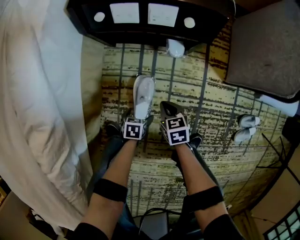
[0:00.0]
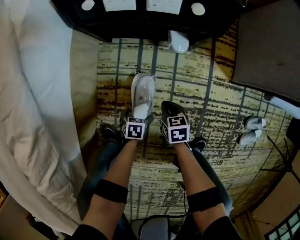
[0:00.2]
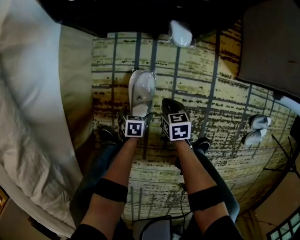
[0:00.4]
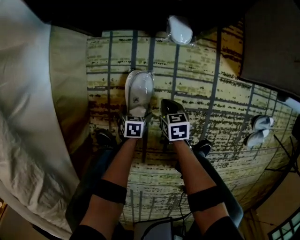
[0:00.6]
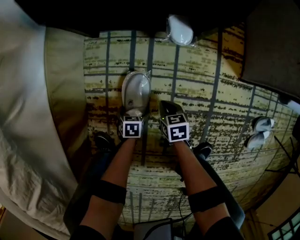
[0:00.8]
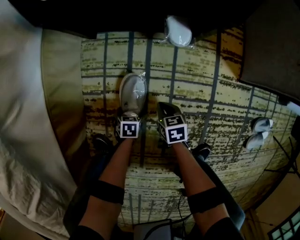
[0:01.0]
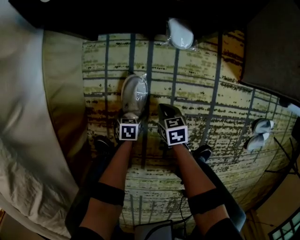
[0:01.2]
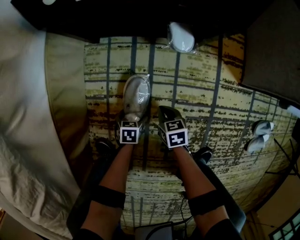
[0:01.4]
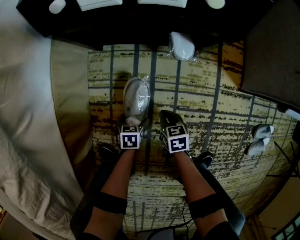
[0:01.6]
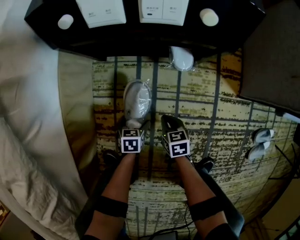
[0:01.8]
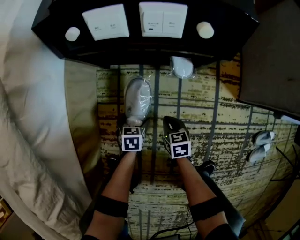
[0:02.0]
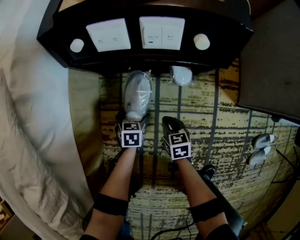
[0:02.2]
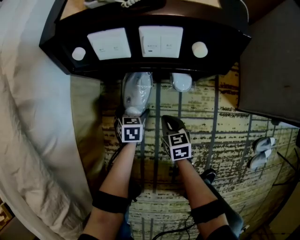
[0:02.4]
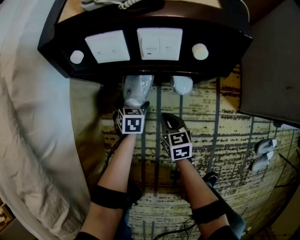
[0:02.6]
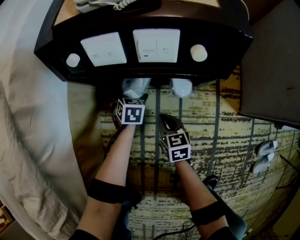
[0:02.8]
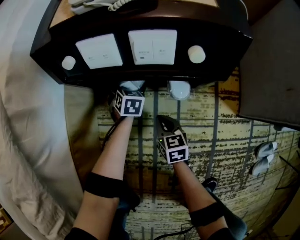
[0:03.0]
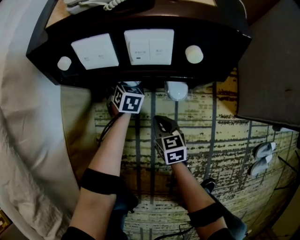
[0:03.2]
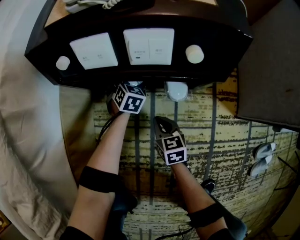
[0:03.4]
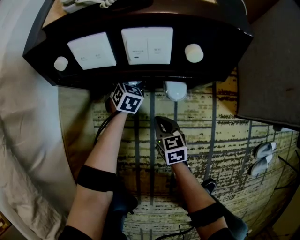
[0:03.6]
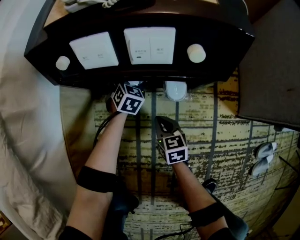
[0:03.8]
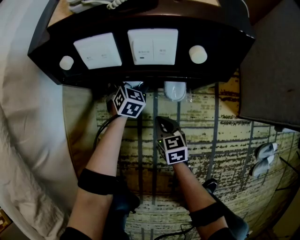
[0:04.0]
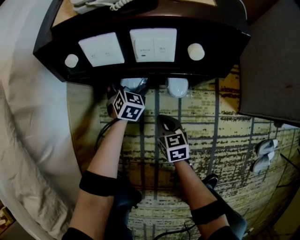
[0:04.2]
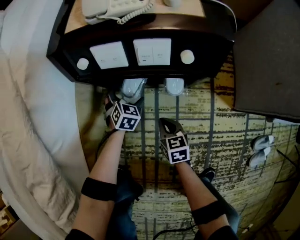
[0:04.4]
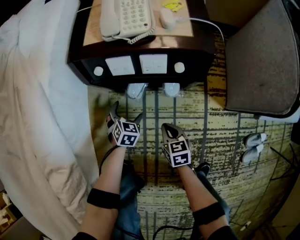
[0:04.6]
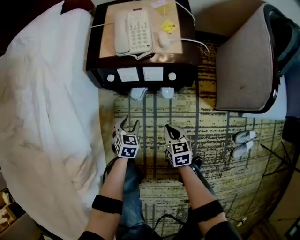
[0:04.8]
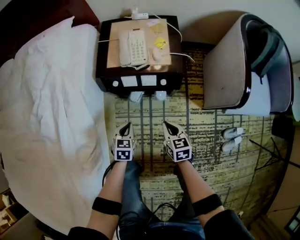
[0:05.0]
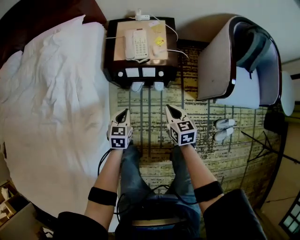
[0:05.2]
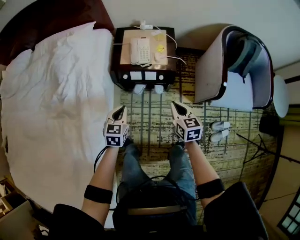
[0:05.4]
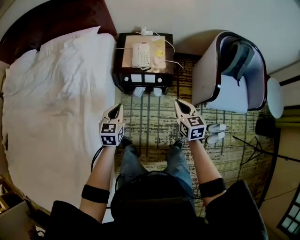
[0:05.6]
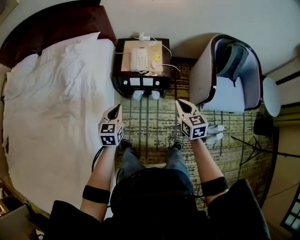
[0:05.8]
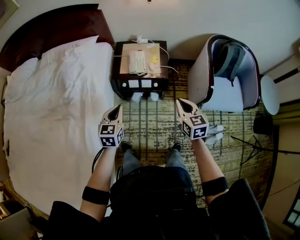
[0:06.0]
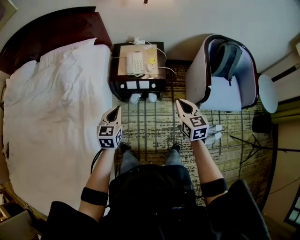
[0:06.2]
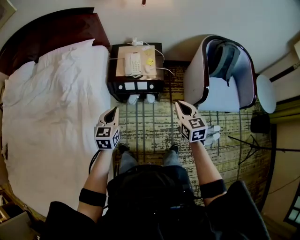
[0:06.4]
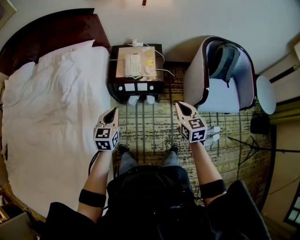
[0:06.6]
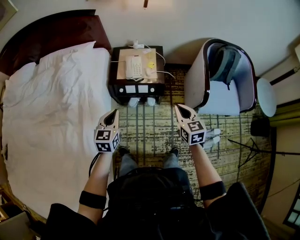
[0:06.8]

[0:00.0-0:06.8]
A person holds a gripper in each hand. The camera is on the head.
0:00.0 to 0:01.4: The grippers both shift downward by approximately 20 cm.
0:01.4 to 0:02.8: The left gripper goes about 30 cm forward, and turns by some 30 degrees, while the right gripper goes approximately 20 cm forward and upward.
0:02.8 to 0:04.0: The left gripper shifts about 5 cm forward, and rotates some 30 degrees.
0:04.0 to 0:05.4: The right gripper travels upward by roughly 70 cm; the left gripper shifts roughly 70 cm upward and backward, swivels approximately 30 degrees, and closes its fingers.
0:05.4 to 0:06.8: The right gripper goes roughly 15 cm upward and to the right. The left gripper heads upward, covering approximately 15 cm.

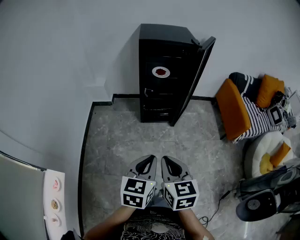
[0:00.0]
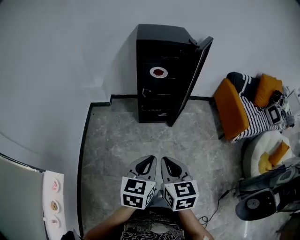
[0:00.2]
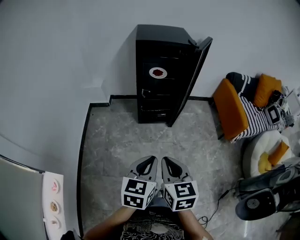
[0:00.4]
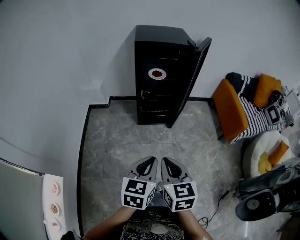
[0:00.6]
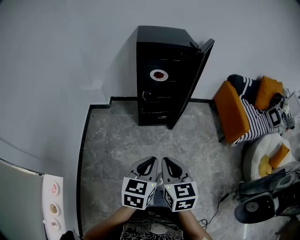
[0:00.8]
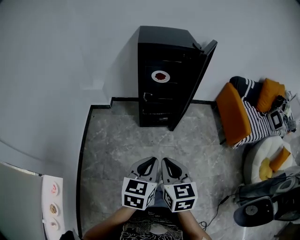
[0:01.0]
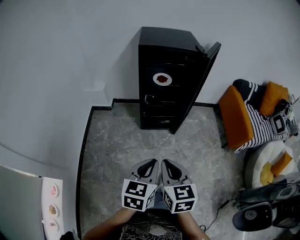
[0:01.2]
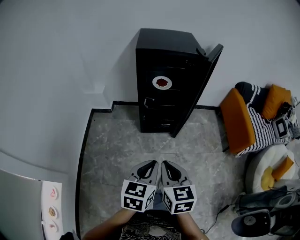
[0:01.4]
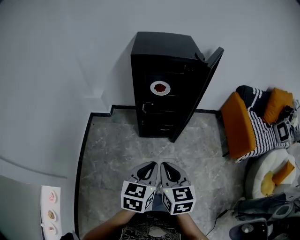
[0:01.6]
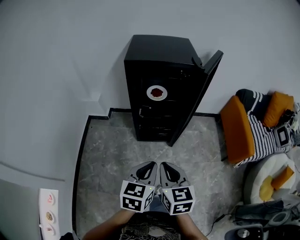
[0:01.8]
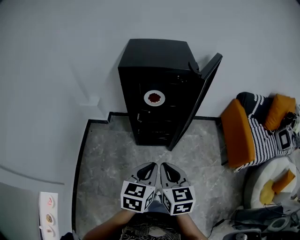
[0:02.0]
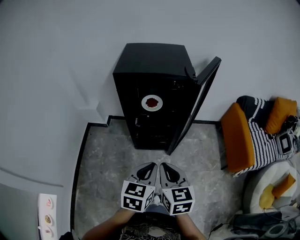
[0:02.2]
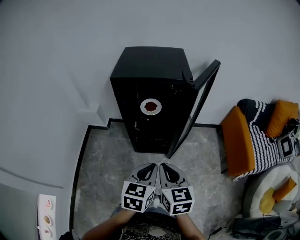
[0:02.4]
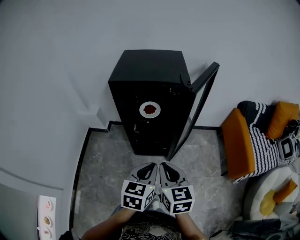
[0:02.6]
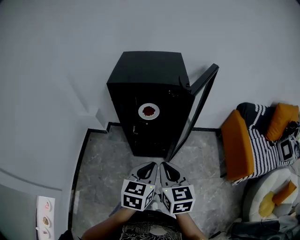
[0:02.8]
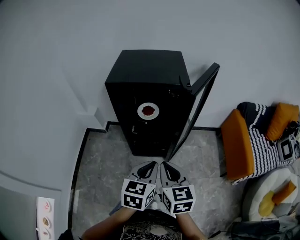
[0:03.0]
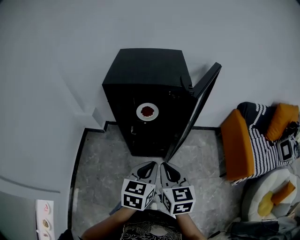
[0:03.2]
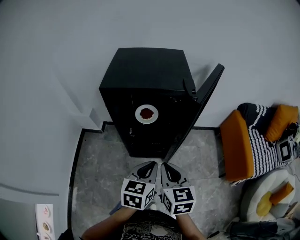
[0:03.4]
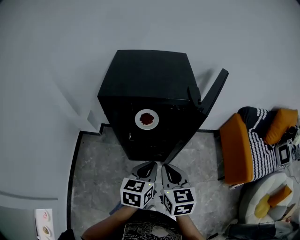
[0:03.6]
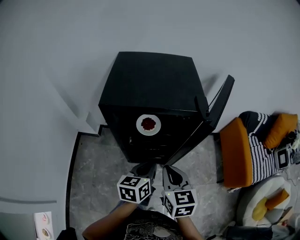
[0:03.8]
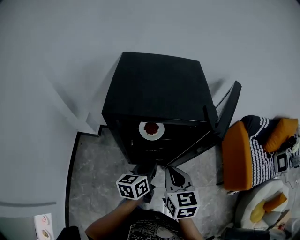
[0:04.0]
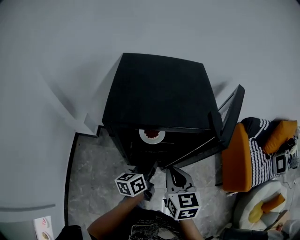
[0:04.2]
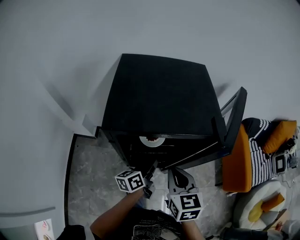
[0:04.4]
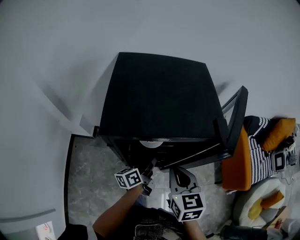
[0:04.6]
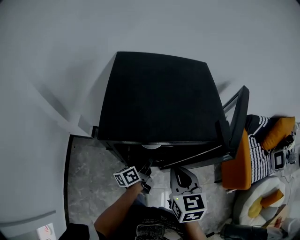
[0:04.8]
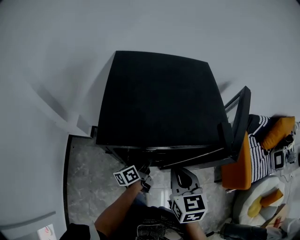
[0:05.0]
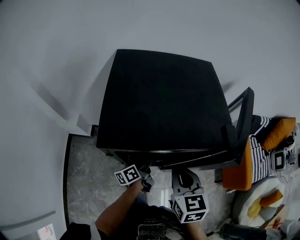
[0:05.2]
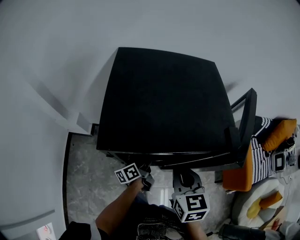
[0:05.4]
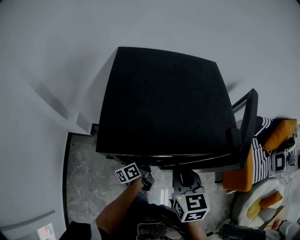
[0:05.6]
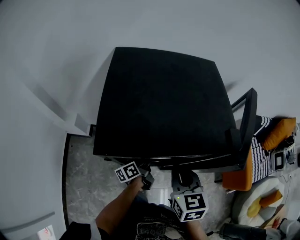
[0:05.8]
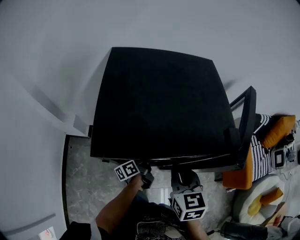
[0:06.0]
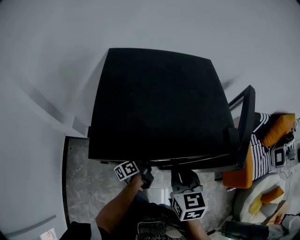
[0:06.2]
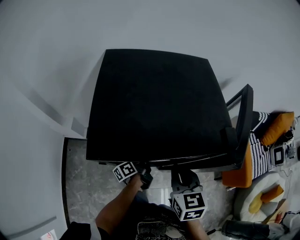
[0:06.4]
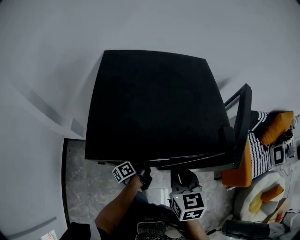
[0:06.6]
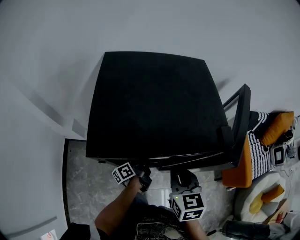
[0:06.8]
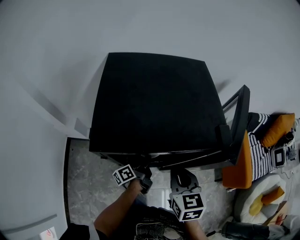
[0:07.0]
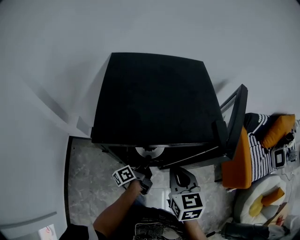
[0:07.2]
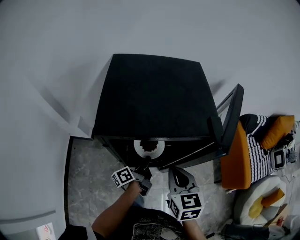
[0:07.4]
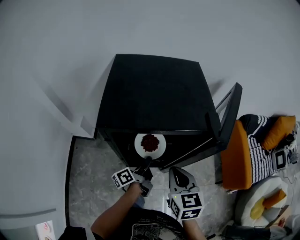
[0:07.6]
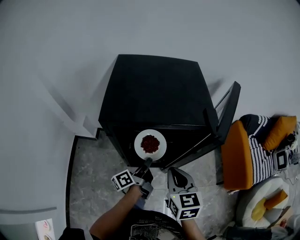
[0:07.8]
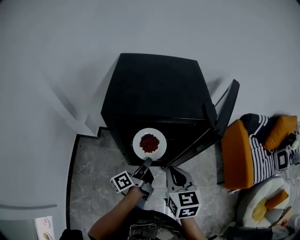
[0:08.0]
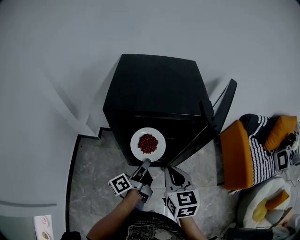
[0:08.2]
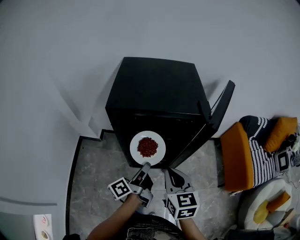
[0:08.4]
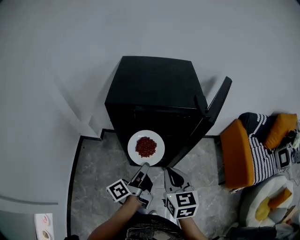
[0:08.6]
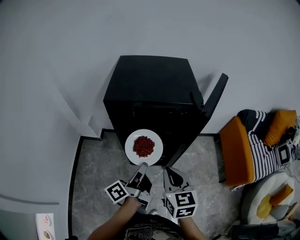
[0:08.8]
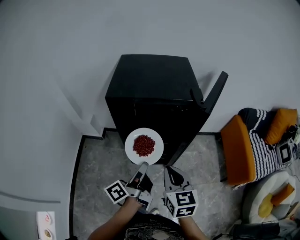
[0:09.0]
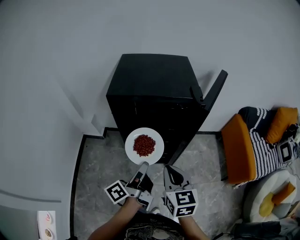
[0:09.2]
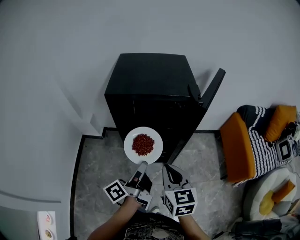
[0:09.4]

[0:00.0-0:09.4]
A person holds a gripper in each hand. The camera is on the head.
0:00.0 to 0:01.6: Both grippers travel together forward, approximately 15 cm.
0:01.6 to 0:03.2: Both grippers travel together forward and to the right, approximately 25 cm.
0:03.2 to 0:04.8: The right gripper is displaced forward by approximately 25 cm; the left gripper moves forward, downward and to the left, approximately 35 cm, and rotates around the line of its fingers by roughly 50 degrees, counterclockwise from behind.
0:04.8 to 0:06.2: The left gripper heads downward and forward, covering roughly 10 cm; the right gripper shifts by approximately 5 cm.
0:06.2 to 0:07.8: The left gripper goes roughly 20 cm upward and backward. The right gripper moves backward, about 10 cm.
0:07.8 to 0:09.4: The left gripper goes approximately 20 cm backward and upward; the right gripper goes some 15 cm backward.

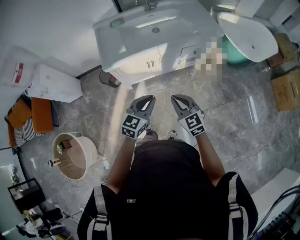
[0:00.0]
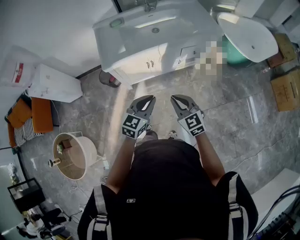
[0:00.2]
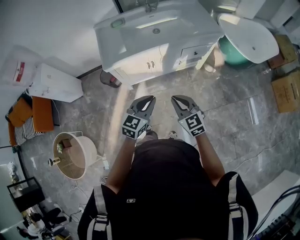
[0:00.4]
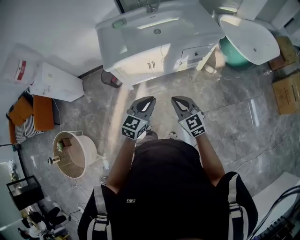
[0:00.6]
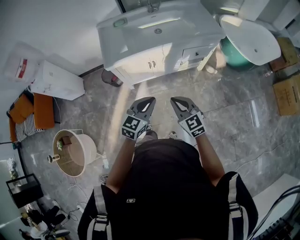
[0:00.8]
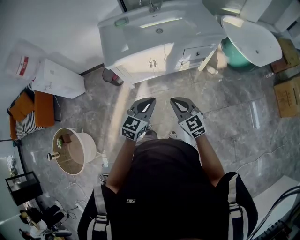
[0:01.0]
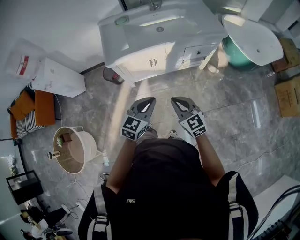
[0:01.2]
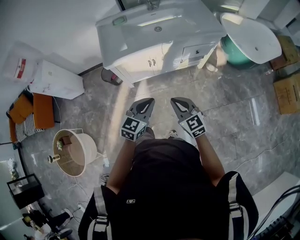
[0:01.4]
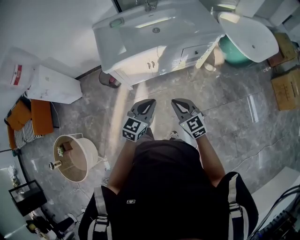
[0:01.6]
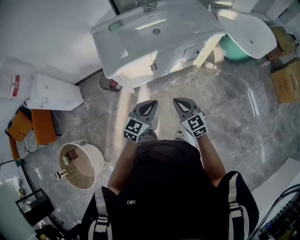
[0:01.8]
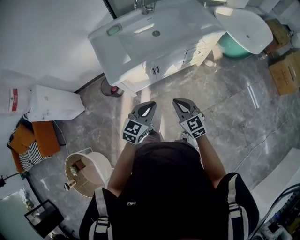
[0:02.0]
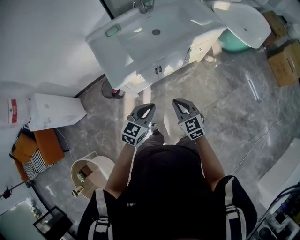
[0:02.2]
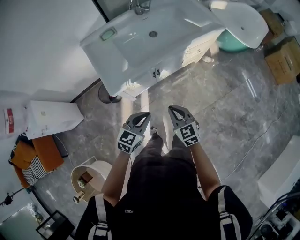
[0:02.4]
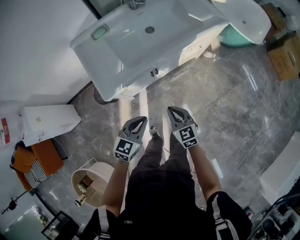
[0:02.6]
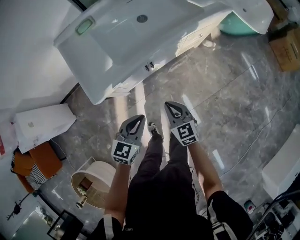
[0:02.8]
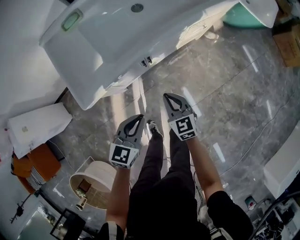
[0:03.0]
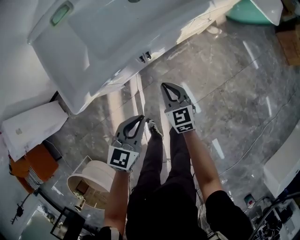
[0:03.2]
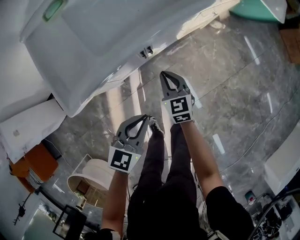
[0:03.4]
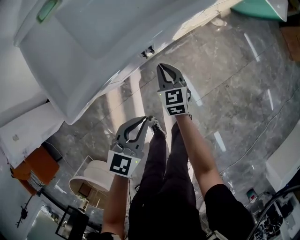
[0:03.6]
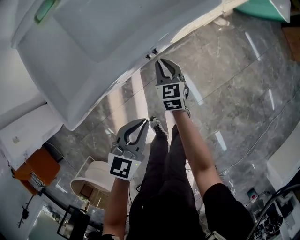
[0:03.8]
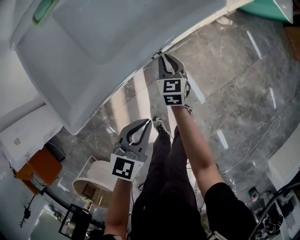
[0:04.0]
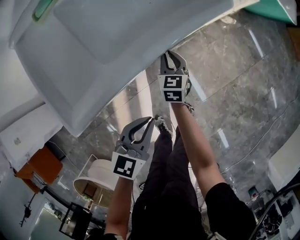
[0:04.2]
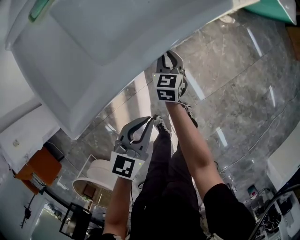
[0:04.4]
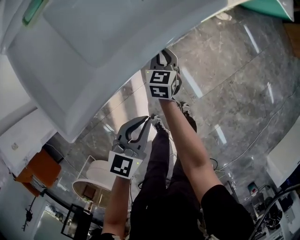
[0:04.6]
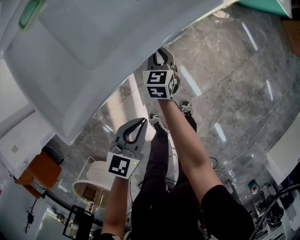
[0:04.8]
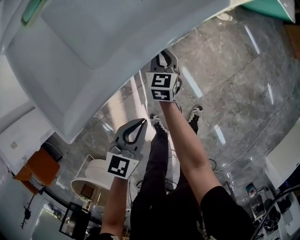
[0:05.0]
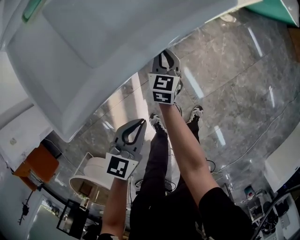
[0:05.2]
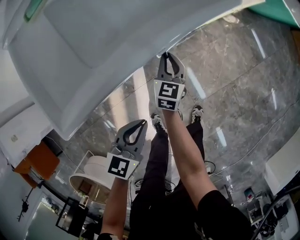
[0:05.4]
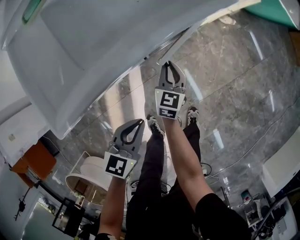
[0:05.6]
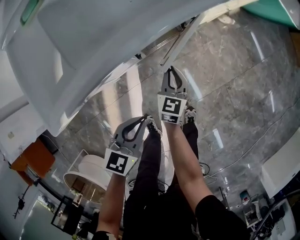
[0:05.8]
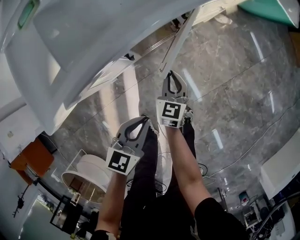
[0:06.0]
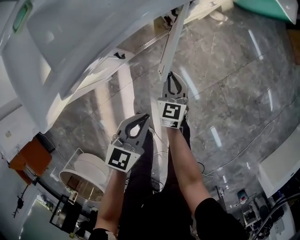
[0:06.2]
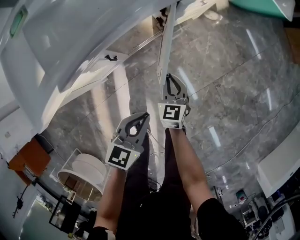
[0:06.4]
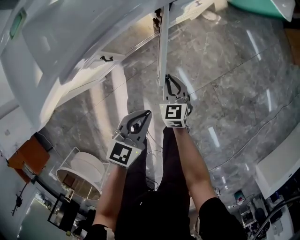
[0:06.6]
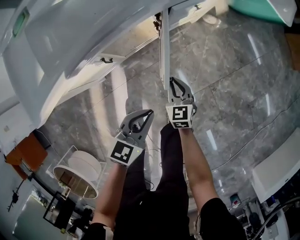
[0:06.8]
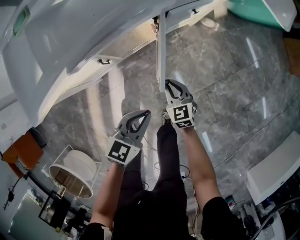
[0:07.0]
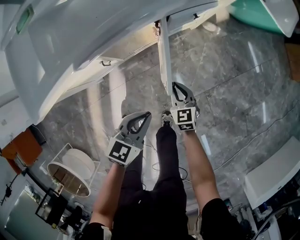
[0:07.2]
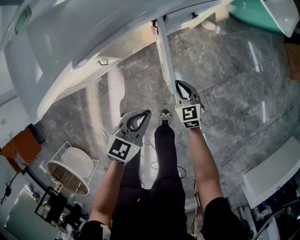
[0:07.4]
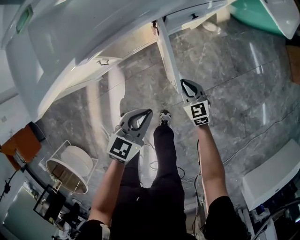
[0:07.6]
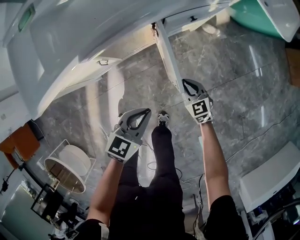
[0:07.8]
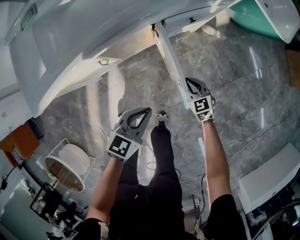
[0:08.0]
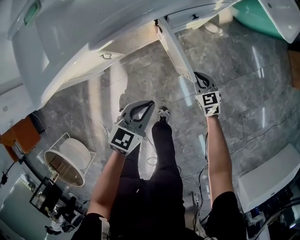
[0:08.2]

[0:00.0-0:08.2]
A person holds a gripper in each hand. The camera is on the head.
0:00.0 to 0:01.6: There are only small adjustments of the grippers.
0:01.6 to 0:03.2: The left gripper shifts some 30 cm downward, to the left and forward, while the right gripper is displaced downward, forward and to the left by about 40 cm, and turns by roughly 30 degrees.
0:03.2 to 0:05.0: The left gripper moves downward, about 10 cm; the right gripper is displaced forward, downward and to the left by some 20 cm, and rotates approximately 20 degrees.
0:05.0 to 0:06.6: Both grippers move to the right, approximately 20 cm.
0:06.6 to 0:08.2: The left gripper moves to the right, roughly 5 cm. Meanwhile the right gripper travels to the right and forward by roughly 15 cm, and swivels some 20 degrees.
